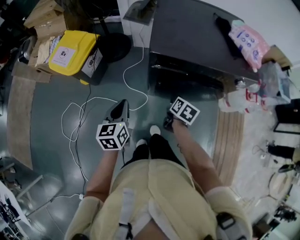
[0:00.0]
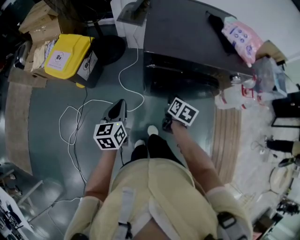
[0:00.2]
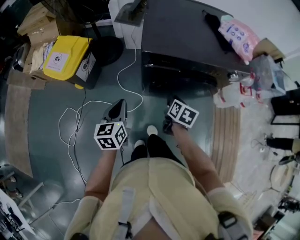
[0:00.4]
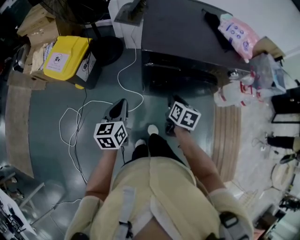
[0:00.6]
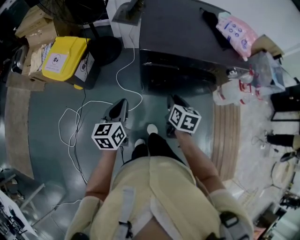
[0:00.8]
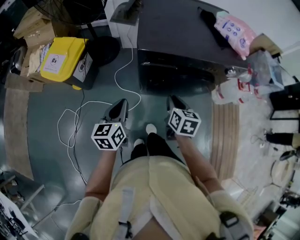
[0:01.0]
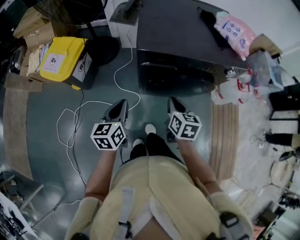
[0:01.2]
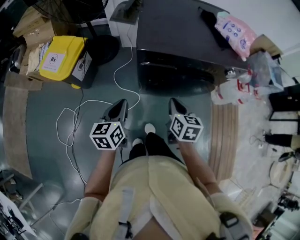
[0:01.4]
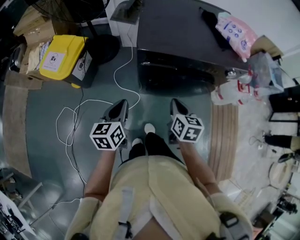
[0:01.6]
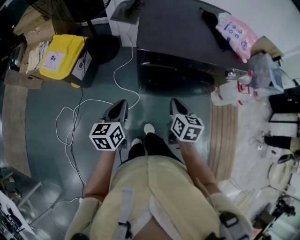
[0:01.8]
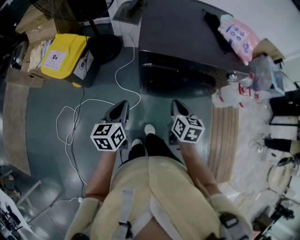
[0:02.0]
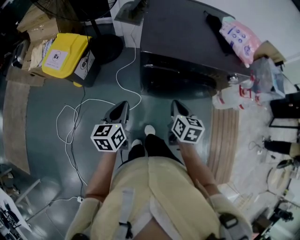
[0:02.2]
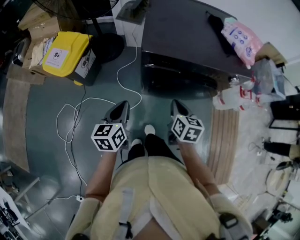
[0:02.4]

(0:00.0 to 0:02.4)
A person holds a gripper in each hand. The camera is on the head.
0:00.0 - 0:01.2: The right gripper travels upward and backward by roughly 10 cm, and changes its angle by some 20 degrees.
0:01.2 - 0:02.4: The grippers stay close to where they were, moving slightly.

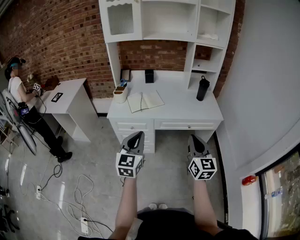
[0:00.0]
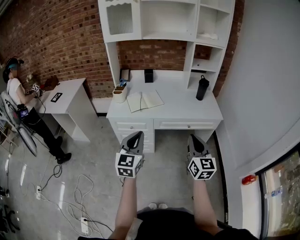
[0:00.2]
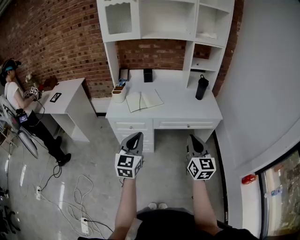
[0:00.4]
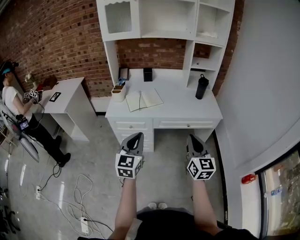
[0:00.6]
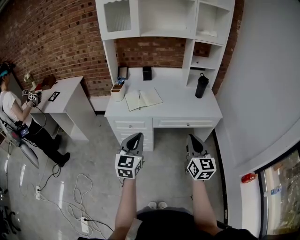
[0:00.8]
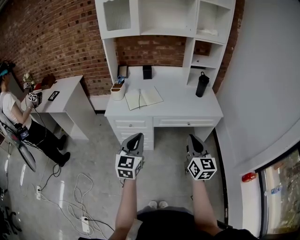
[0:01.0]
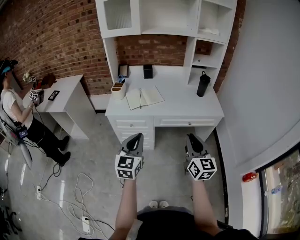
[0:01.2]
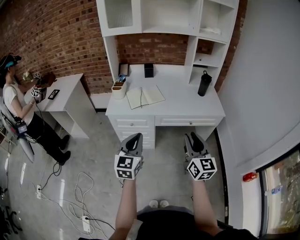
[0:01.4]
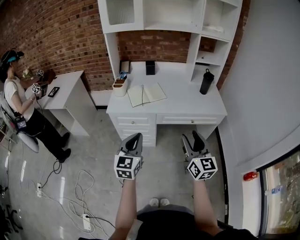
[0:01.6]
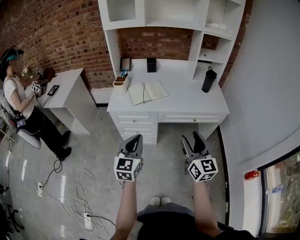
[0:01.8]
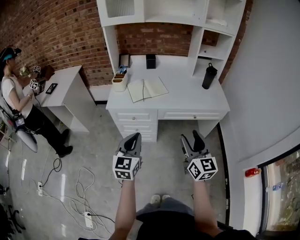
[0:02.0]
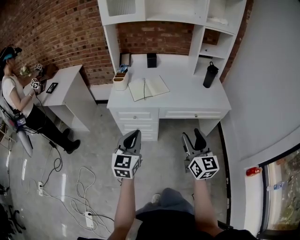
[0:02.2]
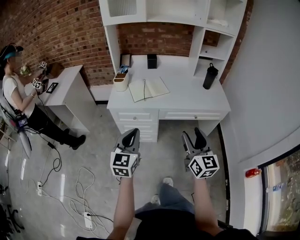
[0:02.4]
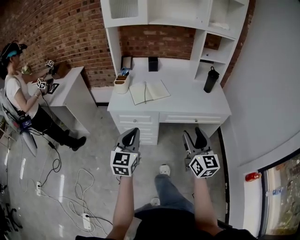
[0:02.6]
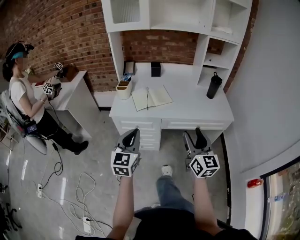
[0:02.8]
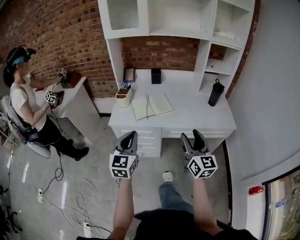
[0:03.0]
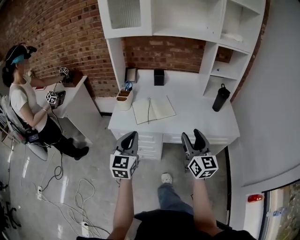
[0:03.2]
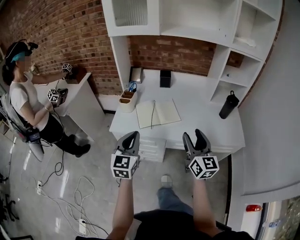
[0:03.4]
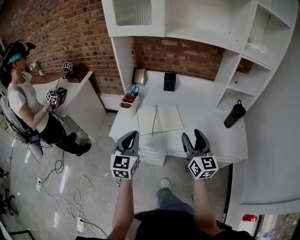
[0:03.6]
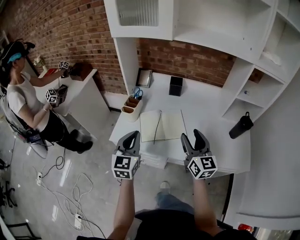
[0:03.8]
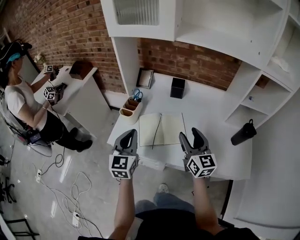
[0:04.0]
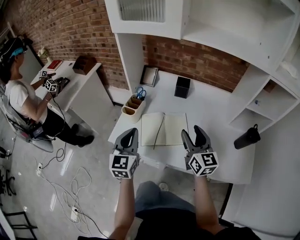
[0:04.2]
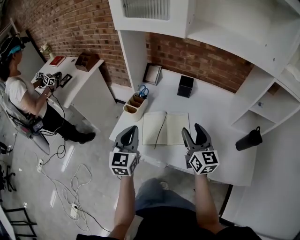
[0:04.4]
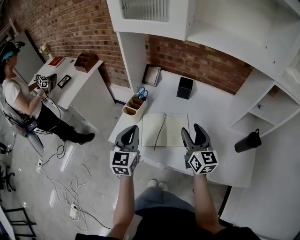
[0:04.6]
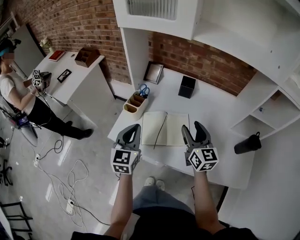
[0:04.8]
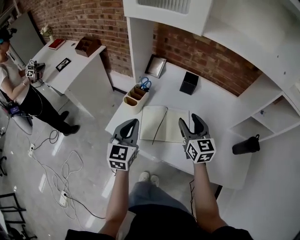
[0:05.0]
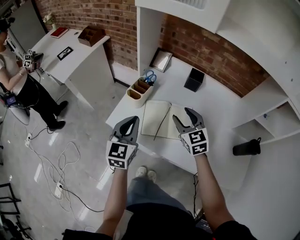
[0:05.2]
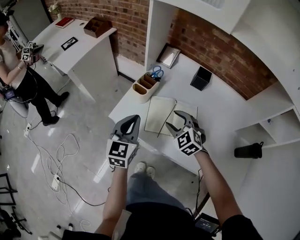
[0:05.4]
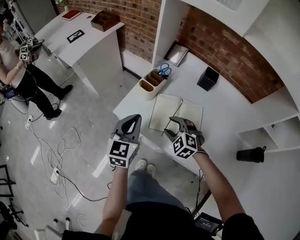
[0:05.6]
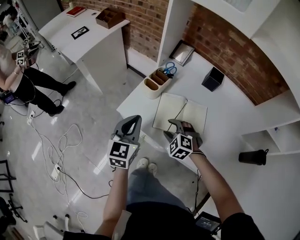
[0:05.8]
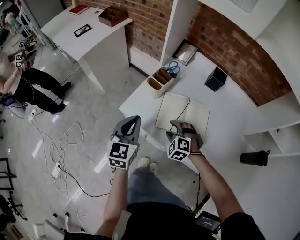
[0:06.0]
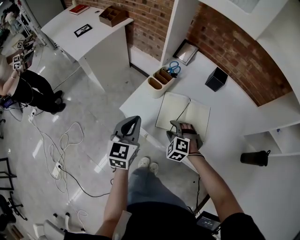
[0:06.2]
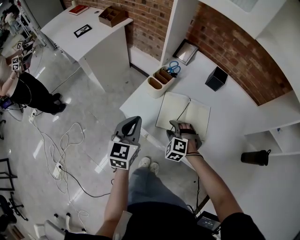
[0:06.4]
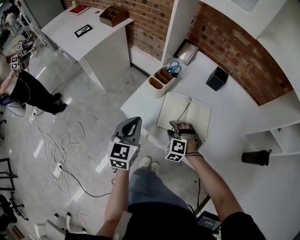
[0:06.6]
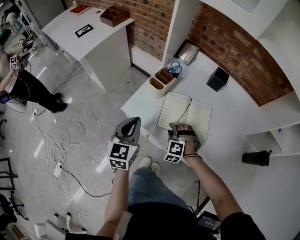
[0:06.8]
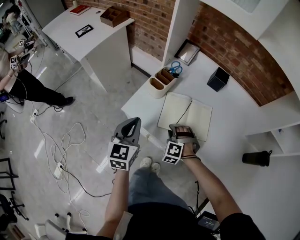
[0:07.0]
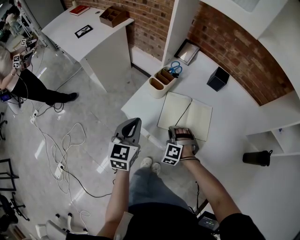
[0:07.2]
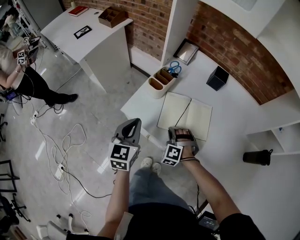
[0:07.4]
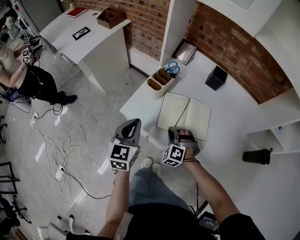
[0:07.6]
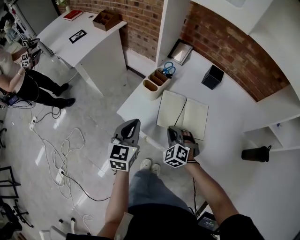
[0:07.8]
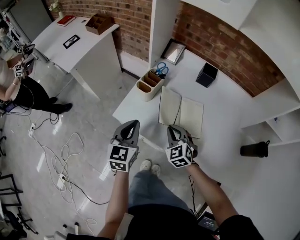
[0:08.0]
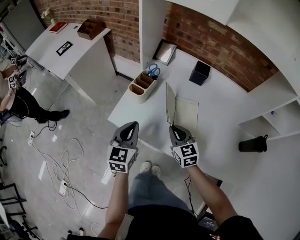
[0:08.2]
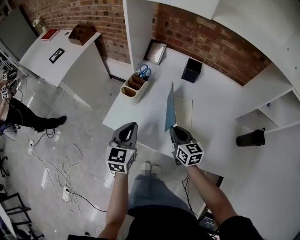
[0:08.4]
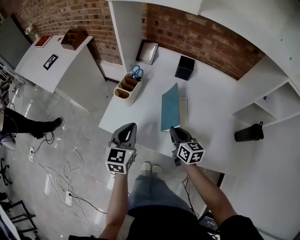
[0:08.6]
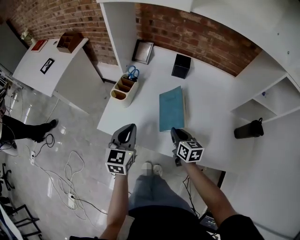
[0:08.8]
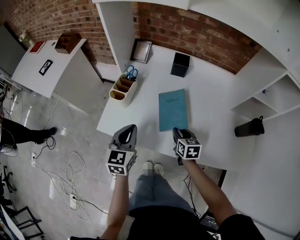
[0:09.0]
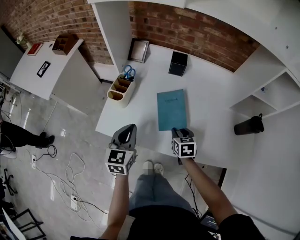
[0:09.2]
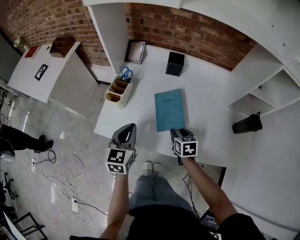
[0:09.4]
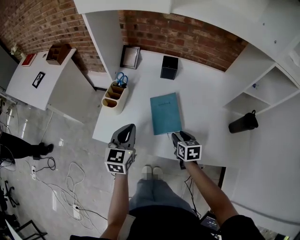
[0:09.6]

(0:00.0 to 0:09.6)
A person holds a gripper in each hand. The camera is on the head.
0:00.0 - 0:01.6: The right gripper changes place by about 5 cm, and opens up, while the left gripper ends up approximately 5 cm from where it was.
0:01.6 - 0:03.2: The grippers both shift forward by approximately 20 cm.
0:03.2 - 0:04.8: Both grippers move forward, approximately 25 cm. The right gripper swivels about 20 degrees.
0:04.8 - 0:06.4: The left gripper travels to the left and downward by roughly 10 cm. The right gripper heads downward and to the left, covering some 30 cm, and rolls counterclockwise, seen from behind, by some 80 degrees.
0:06.4 - 0:08.0: The right gripper travels upward by approximately 5 cm, changes its angle by about 40 degrees, and closes.
0:08.0 - 0:09.6: The right gripper travels to the right by about 15 cm, rotates around the line of its fingers by roughly 60 degrees, clockwise from behind, and opens; the left gripper goes approximately 10 cm to the right.

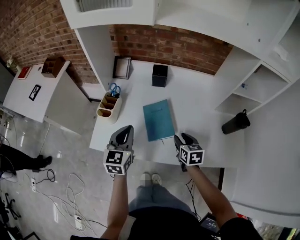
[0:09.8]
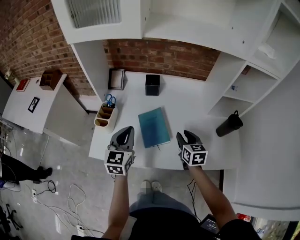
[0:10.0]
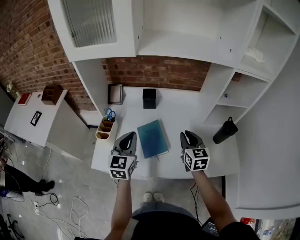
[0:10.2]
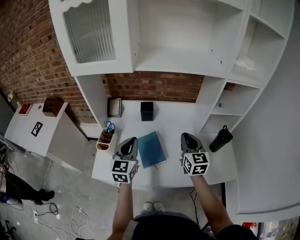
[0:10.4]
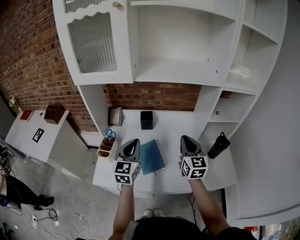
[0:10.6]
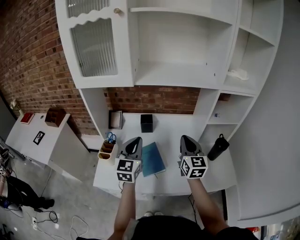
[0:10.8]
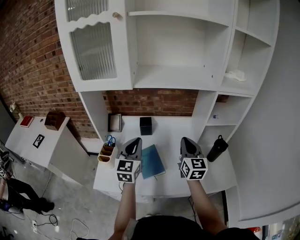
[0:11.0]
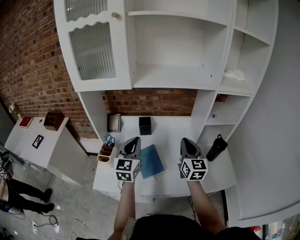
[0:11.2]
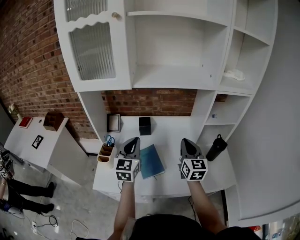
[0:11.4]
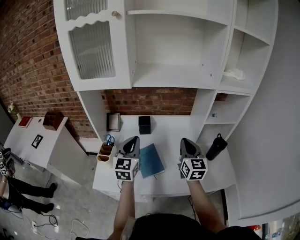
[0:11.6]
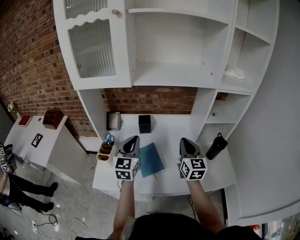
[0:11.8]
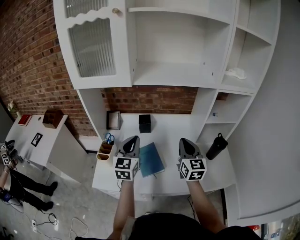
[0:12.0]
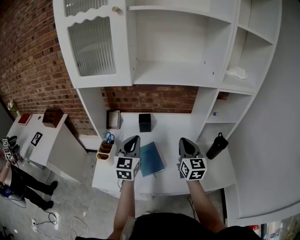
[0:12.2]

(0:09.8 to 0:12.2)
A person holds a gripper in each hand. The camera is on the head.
0:09.8 - 0:11.0: The left gripper is displaced upward, to the right and forward by some 20 cm, while the right gripper shifts some 25 cm upward, angles its fingers upward, by approximately 40 degrees, and closes up.
0:11.0 - 0:12.2: The grippers move only a little.

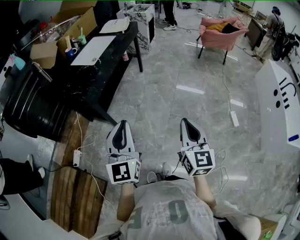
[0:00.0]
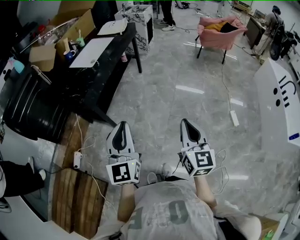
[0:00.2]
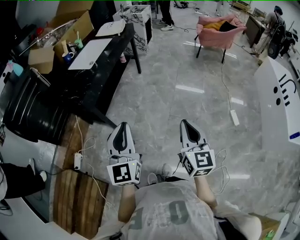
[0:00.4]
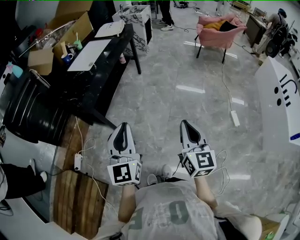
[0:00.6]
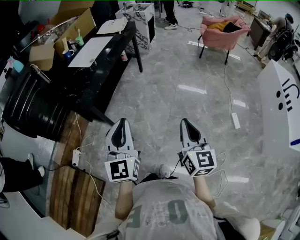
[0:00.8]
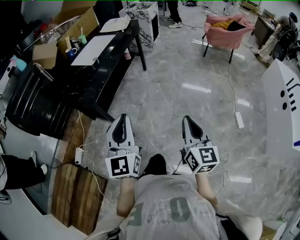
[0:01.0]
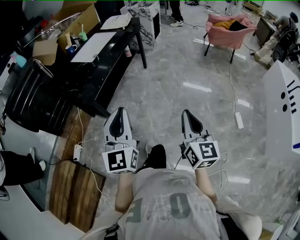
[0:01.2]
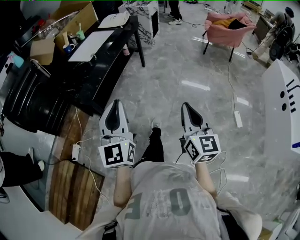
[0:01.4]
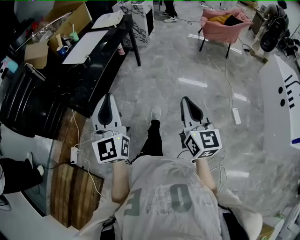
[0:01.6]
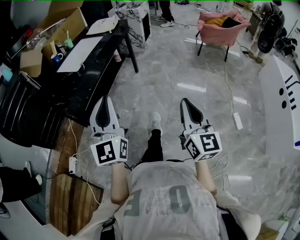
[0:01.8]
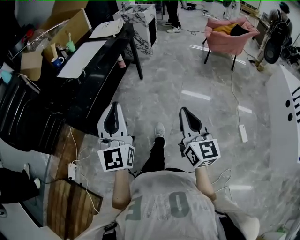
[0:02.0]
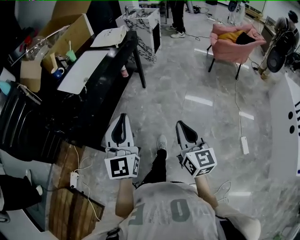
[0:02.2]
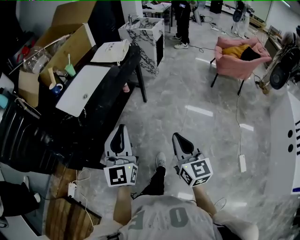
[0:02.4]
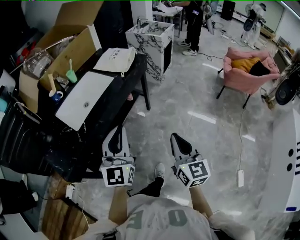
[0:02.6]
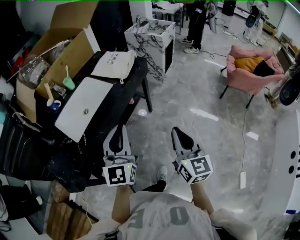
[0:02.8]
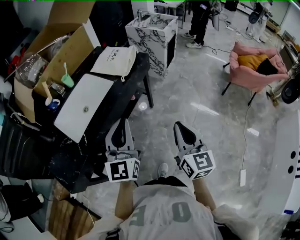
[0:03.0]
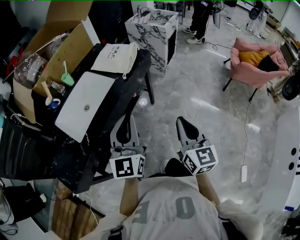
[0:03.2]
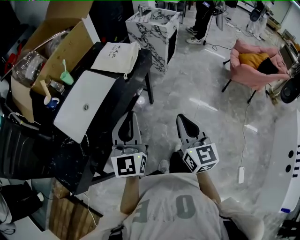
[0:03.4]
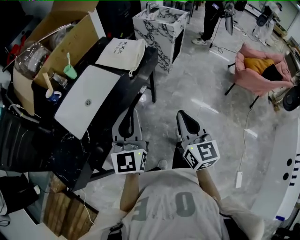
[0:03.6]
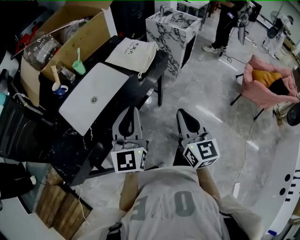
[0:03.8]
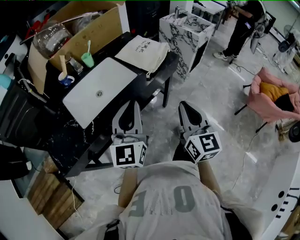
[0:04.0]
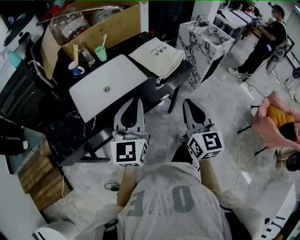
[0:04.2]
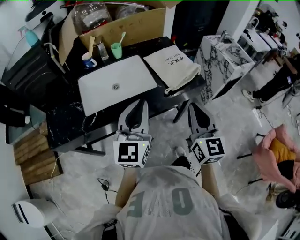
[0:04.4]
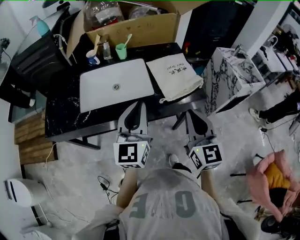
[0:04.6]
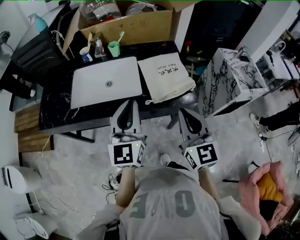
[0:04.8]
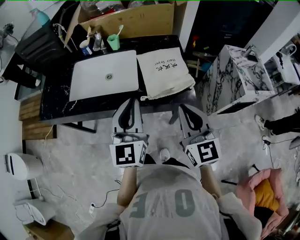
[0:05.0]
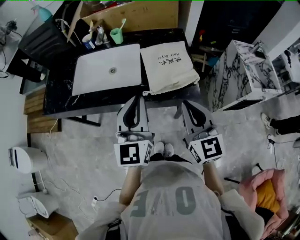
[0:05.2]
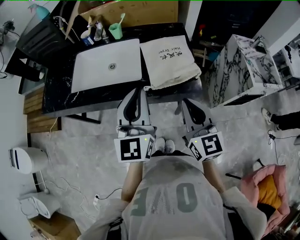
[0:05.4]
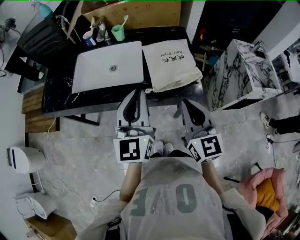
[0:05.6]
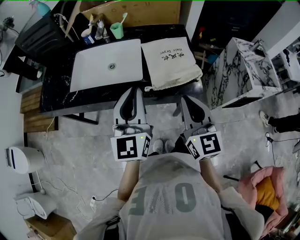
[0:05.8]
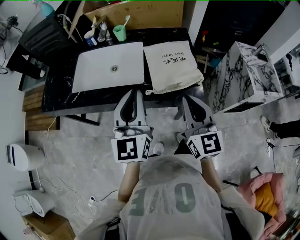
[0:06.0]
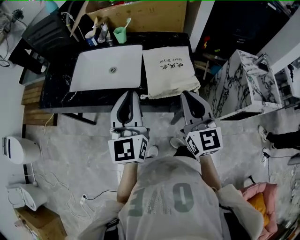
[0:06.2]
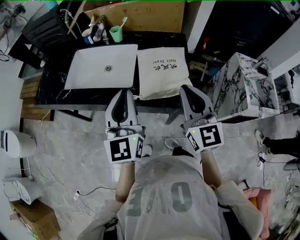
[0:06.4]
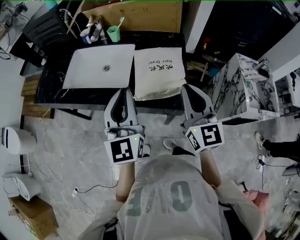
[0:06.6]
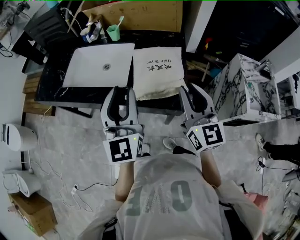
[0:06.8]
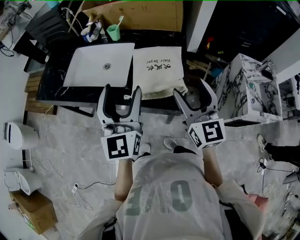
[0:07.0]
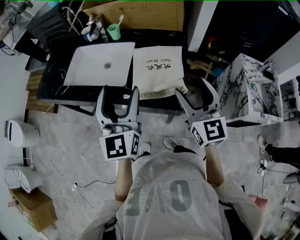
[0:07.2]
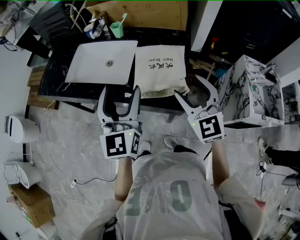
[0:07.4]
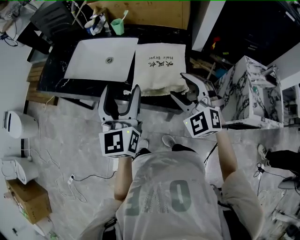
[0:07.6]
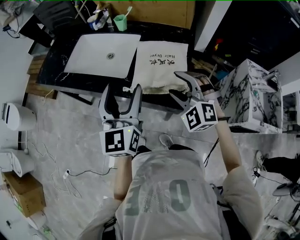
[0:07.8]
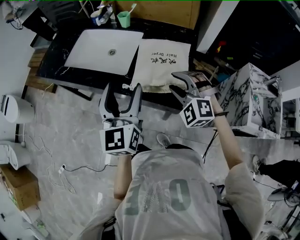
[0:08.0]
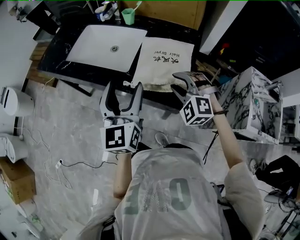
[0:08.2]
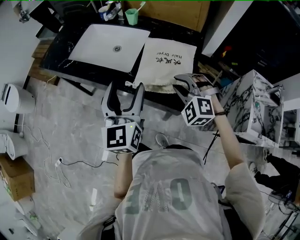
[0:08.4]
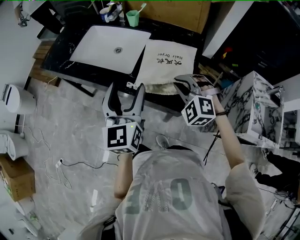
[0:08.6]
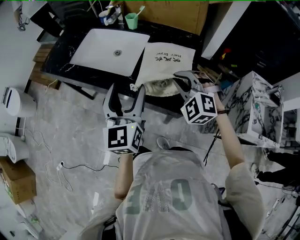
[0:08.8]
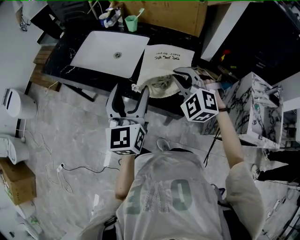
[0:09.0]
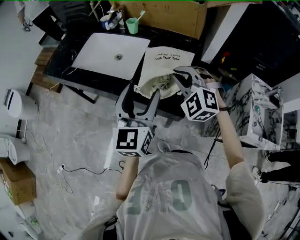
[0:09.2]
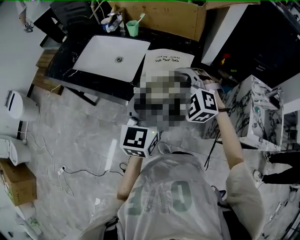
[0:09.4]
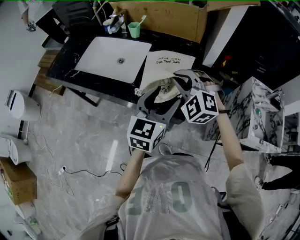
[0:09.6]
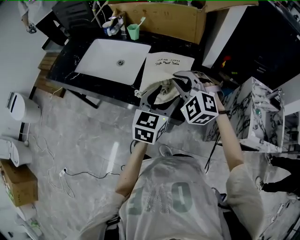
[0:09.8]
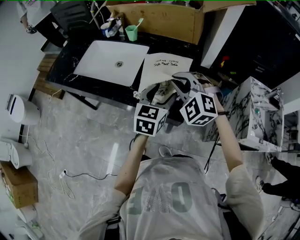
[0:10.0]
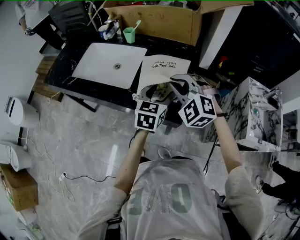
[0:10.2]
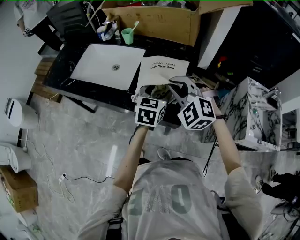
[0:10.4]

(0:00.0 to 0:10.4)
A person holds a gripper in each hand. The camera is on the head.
0:00.0 - 0:01.4: The left gripper heads forward and to the right, covering some 10 cm. Meanwhile the right gripper travels to the right and forward by some 10 cm.
0:01.4 - 0:03.0: Both grippers are carried forward, about 60 cm.
0:03.0 - 0:04.4: The right gripper shifts by approximately 25 cm, and changes its angle by some 40 degrees; the left gripper moves some 15 cm, and changes its angle by about 30 degrees.
0:04.4 - 0:06.0: The left gripper shifts by some 15 cm, and rotates approximately 30 degrees. The right gripper ends up roughly 15 cm from where it was, and changes its angle by roughly 30 degrees.
0:06.0 - 0:07.4: The left gripper goes roughly 10 cm to the right, and opens. Meanwhile the right gripper travels to the right and forward by approximately 15 cm, changes its angle by about 30 degrees, and opens.
0:07.4 - 0:09.0: The right gripper shifts approximately 5 cm forward, turns by approximately 40 degrees, and closes up.
0:09.0 - 0:10.4: The left gripper is displaced to the right, downward and forward by some 20 cm, and turns by some 30 degrees.
